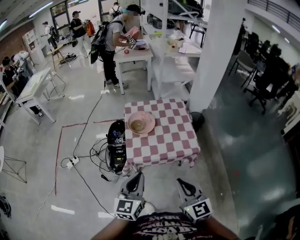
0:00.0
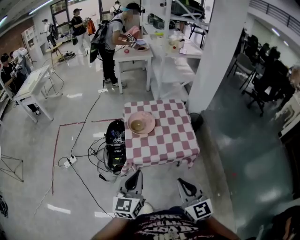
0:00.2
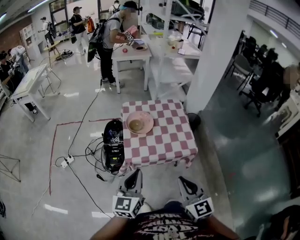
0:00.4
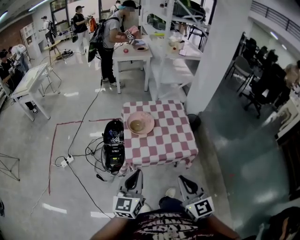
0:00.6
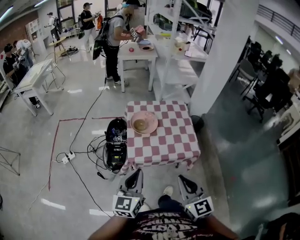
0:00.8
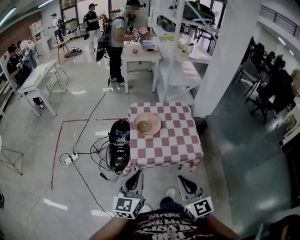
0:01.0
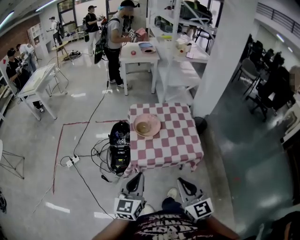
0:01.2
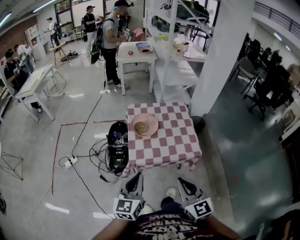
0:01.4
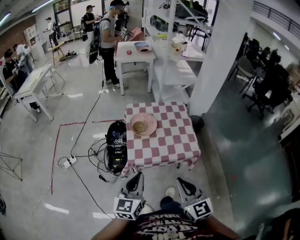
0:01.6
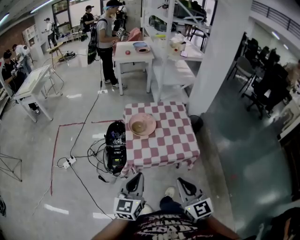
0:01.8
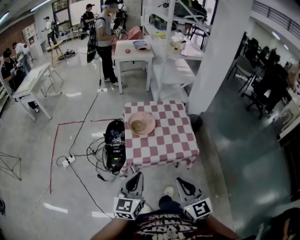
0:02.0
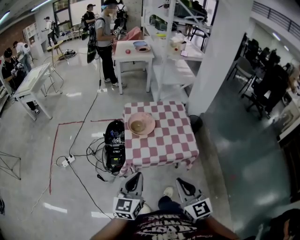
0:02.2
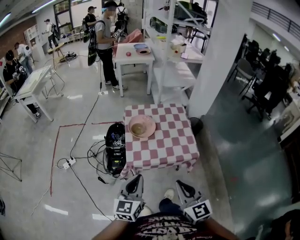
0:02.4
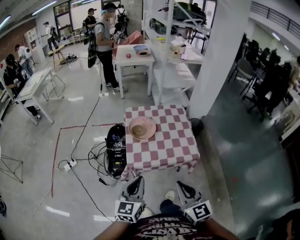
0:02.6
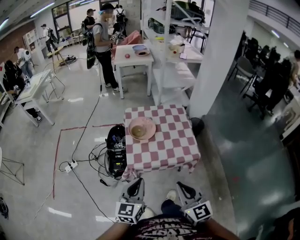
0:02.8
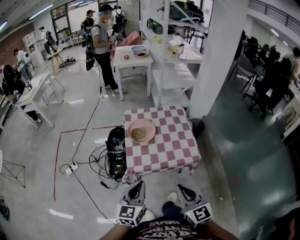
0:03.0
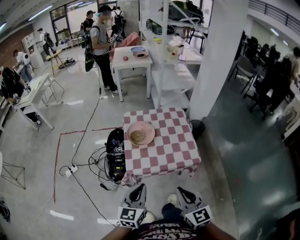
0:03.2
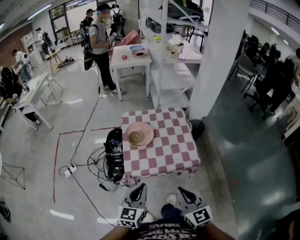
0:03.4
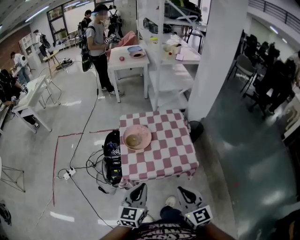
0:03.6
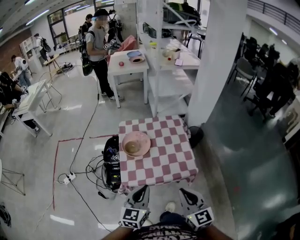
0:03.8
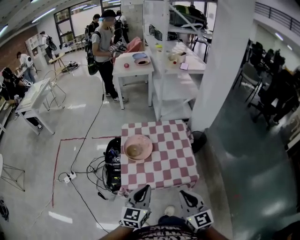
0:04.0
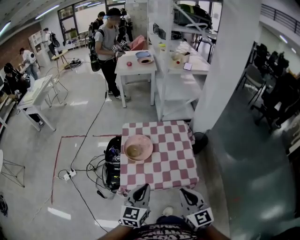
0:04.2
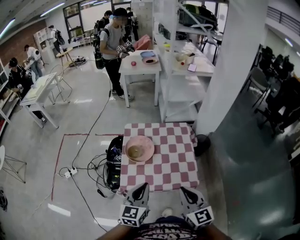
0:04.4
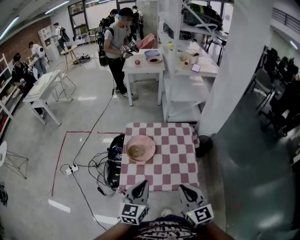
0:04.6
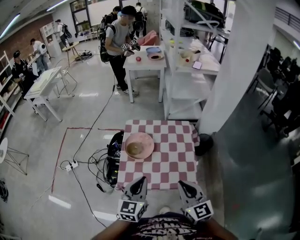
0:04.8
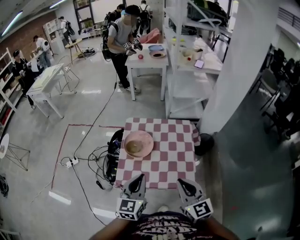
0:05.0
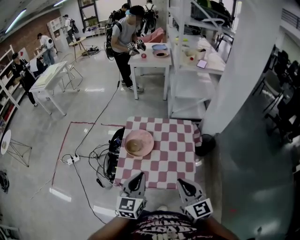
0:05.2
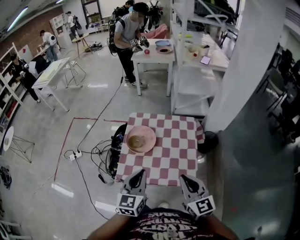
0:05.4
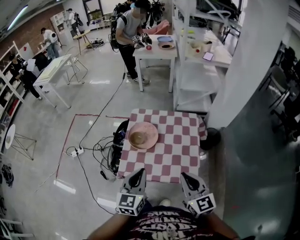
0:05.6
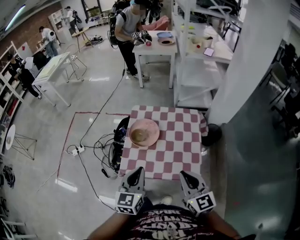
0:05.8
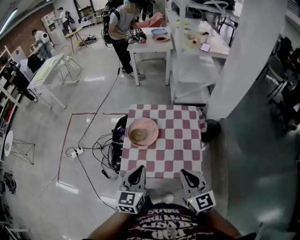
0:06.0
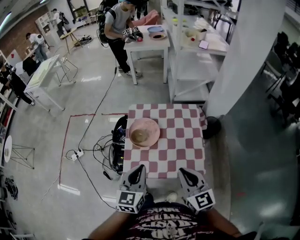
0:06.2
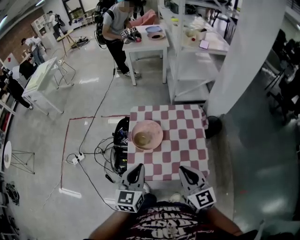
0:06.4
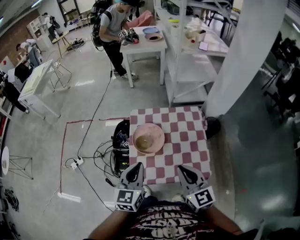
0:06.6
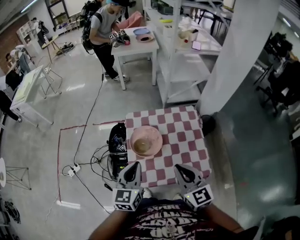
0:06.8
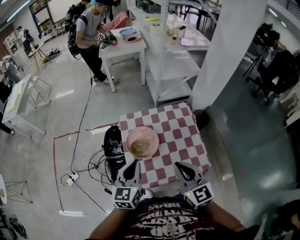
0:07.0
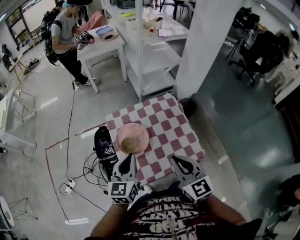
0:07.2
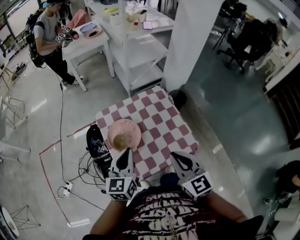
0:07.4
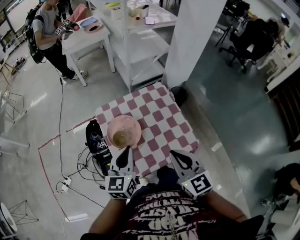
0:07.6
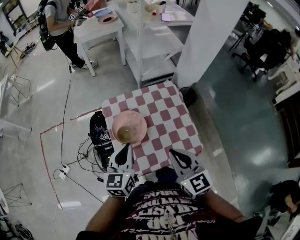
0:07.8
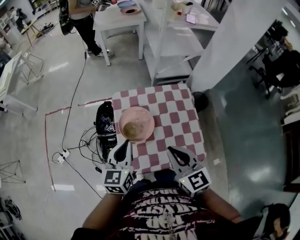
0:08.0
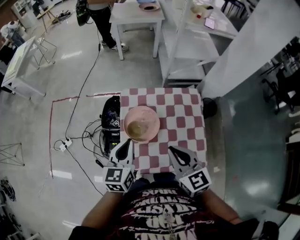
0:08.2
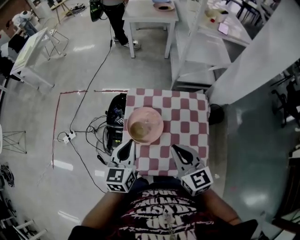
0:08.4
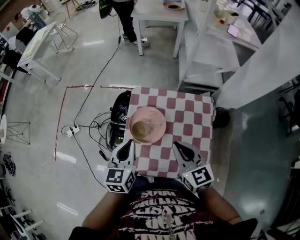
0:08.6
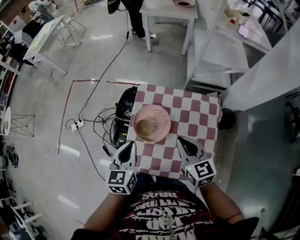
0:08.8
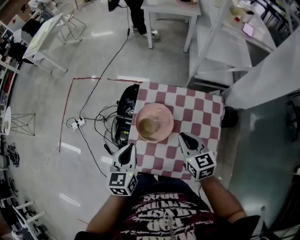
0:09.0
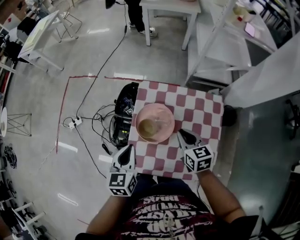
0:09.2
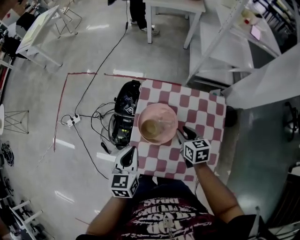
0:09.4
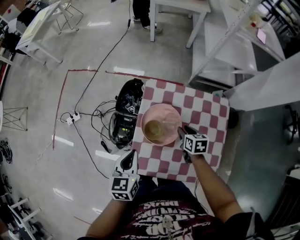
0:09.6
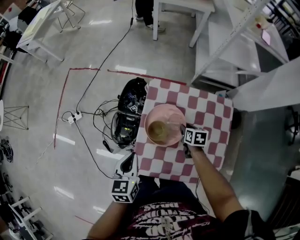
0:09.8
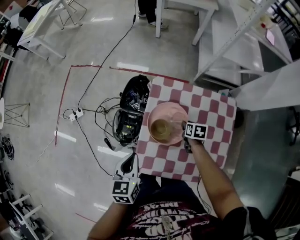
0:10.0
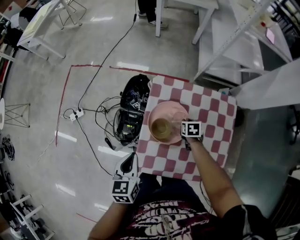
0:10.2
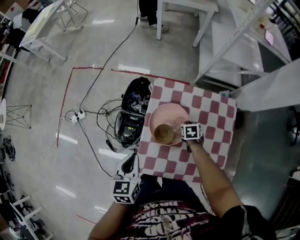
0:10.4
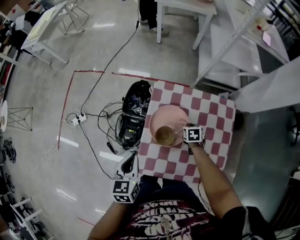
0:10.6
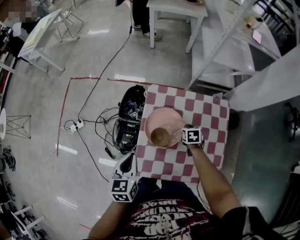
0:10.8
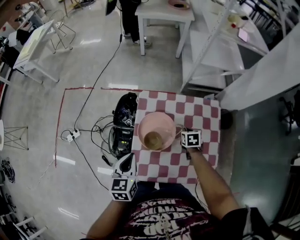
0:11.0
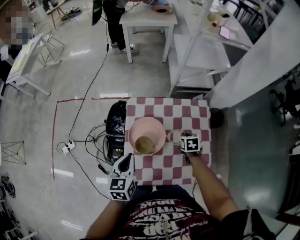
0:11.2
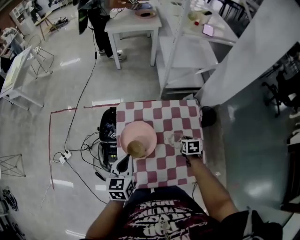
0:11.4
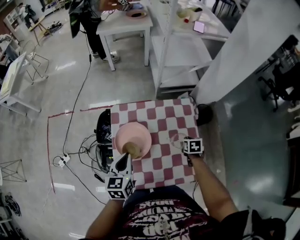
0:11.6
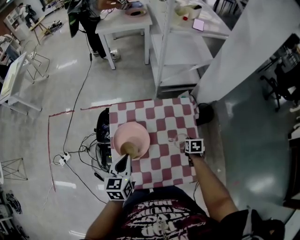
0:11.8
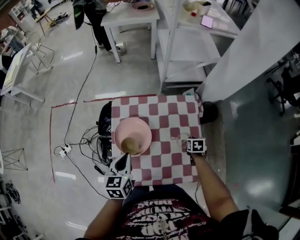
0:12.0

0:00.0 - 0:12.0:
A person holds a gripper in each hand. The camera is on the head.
0:00.0 - 0:03.0: The grippers move only a little.
0:03.0 - 0:04.4: The two grippers go about 20 cm forward and to the right.
0:04.4 - 0:06.0: The right gripper heads forward, covering roughly 5 cm.
0:06.0 - 0:07.6: The left gripper heads forward and to the left, covering about 15 cm, and rotates approximately 20 degrees; the right gripper heads to the left and forward, covering some 10 cm, and changes its angle by some 20 degrees.
0:07.6 - 0:09.0: The right gripper moves some 25 cm, and swivels about 30 degrees. The left gripper heads downward, covering roughly 5 cm, and swivels about 40 degrees.
0:09.0 - 0:10.4: The left gripper heads to the left and downward, covering about 10 cm. Meanwhile the right gripper goes about 30 cm downward, tips its fingers downward by some 40 degrees, and opens and closes again.
0:10.4 - 0:12.0: The left gripper shifts by some 15 cm, while the right gripper ends up approximately 30 cm from where it was, and turns by approximately 20 degrees.

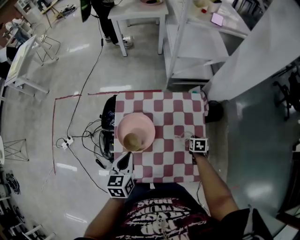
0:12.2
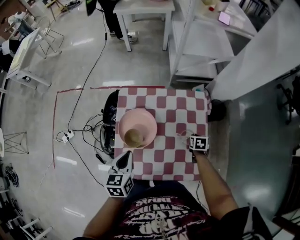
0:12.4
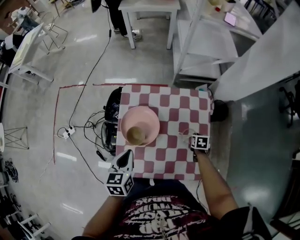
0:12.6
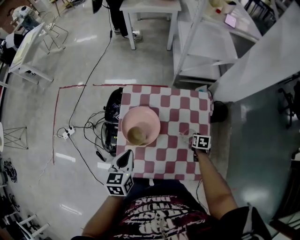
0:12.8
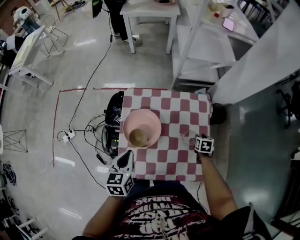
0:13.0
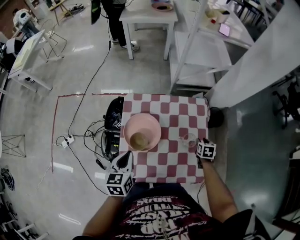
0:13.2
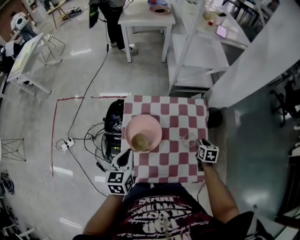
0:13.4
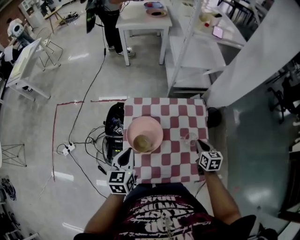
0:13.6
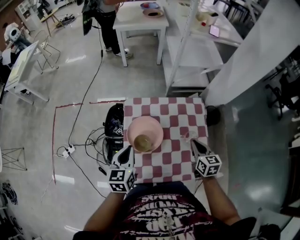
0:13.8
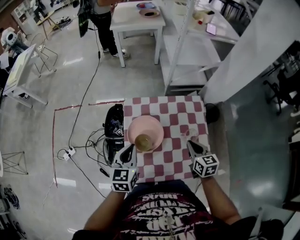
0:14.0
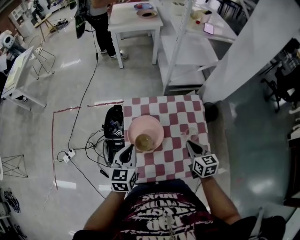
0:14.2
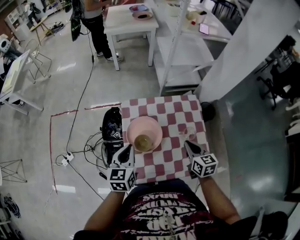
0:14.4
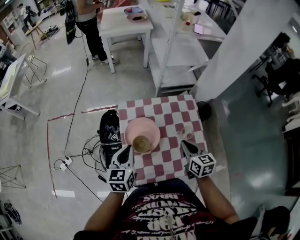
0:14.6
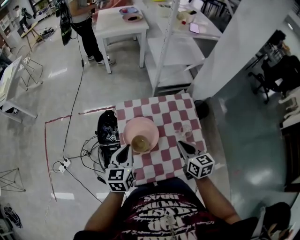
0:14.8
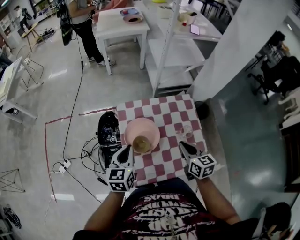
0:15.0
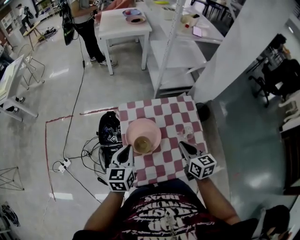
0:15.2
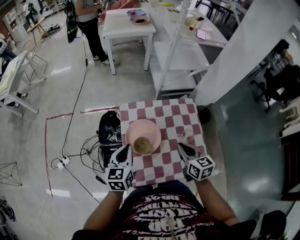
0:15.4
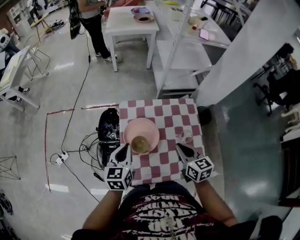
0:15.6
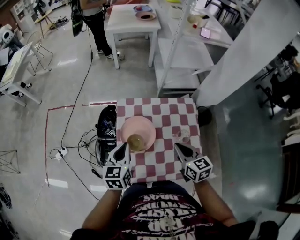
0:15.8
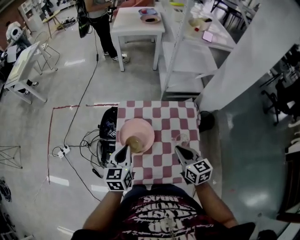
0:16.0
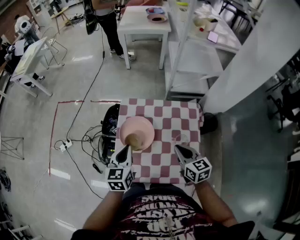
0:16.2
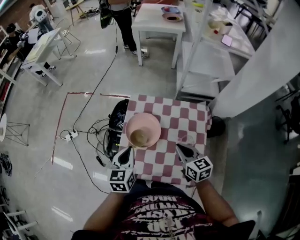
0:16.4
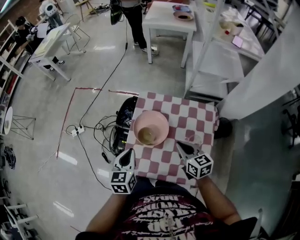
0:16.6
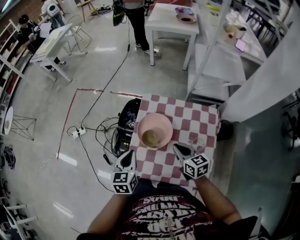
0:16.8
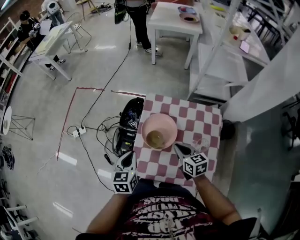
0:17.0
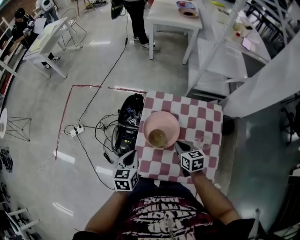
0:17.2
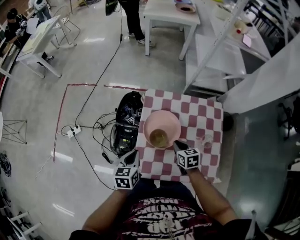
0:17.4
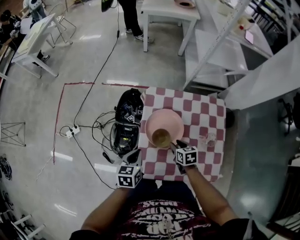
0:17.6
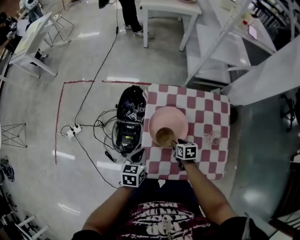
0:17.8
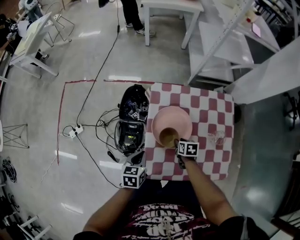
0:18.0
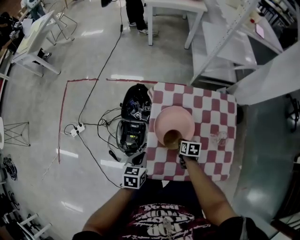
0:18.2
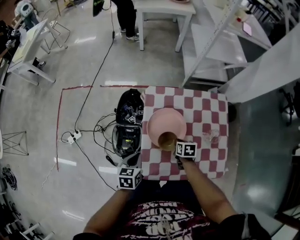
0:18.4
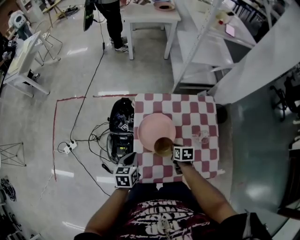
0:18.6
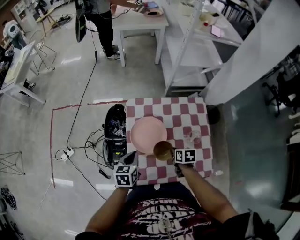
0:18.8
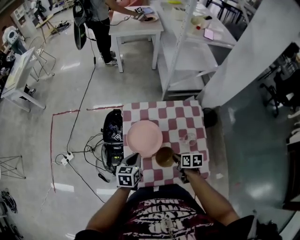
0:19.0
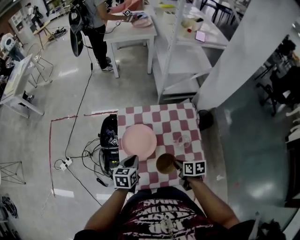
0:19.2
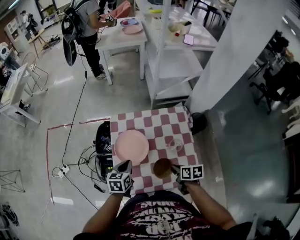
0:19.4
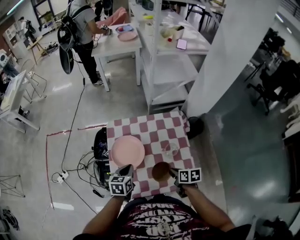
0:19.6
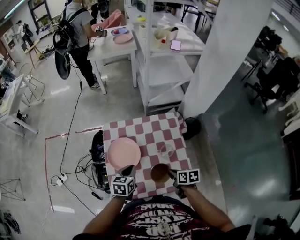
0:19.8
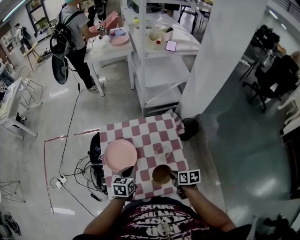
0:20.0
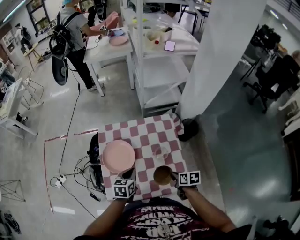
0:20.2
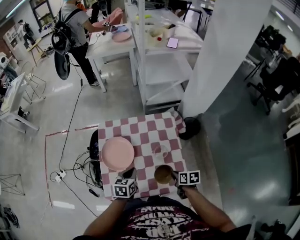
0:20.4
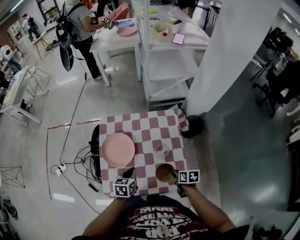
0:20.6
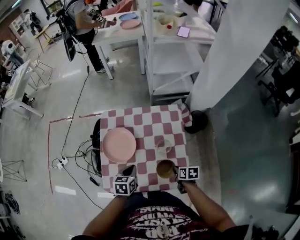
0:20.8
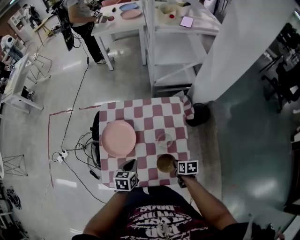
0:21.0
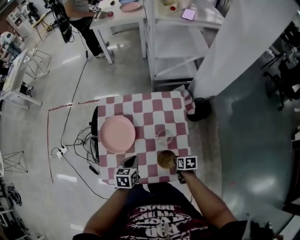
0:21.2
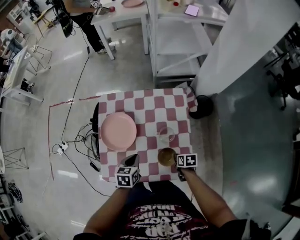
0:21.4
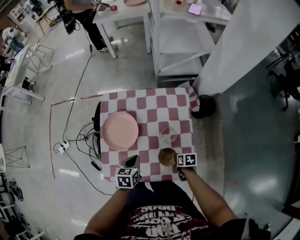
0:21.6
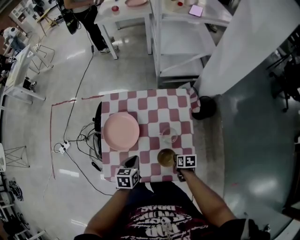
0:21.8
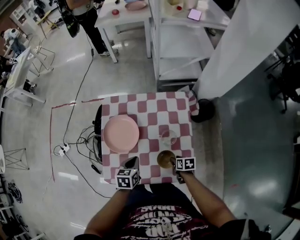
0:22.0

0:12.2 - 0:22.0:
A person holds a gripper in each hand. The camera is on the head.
0:12.2 - 0:13.6: The right gripper heads upward, covering roughly 15 cm, rotates some 30 degrees, and opens, then closes again; the left gripper changes place by approximately 10 cm.
0:13.6 - 0:15.0: The right gripper shifts approximately 20 cm to the left and upward.
0:15.0 - 0:16.4: The left gripper heads to the right and backward, covering roughly 10 cm, and rotates approximately 20 degrees. The right gripper changes its angle by about 20 degrees.
0:16.4 - 0:17.8: Both grippers travel together downward and to the left, roughly 25 cm. The right gripper tilts its fingers some 30 degrees downward, and opens up. Meanwhile the left gripper changes its angle by roughly 20 degrees.
0:17.8 - 0:19.2: The right gripper shifts some 20 cm to the right, upward and backward, and closes its fingers. The left gripper heads to the right and upward, covering some 15 cm.
0:19.2 - 0:20.6: The left gripper shifts some 15 cm to the right, while the right gripper is displaced to the right and downward by about 15 cm.
0:20.6 - 0:22.0: The right gripper goes approximately 10 cm downward, and opens its fingers.

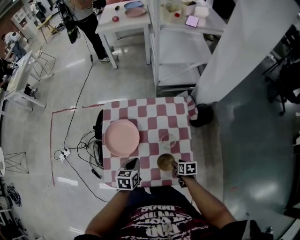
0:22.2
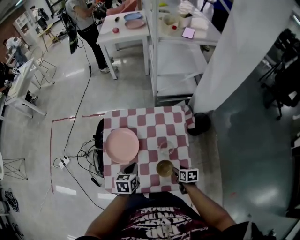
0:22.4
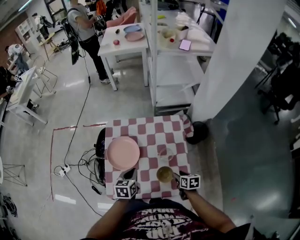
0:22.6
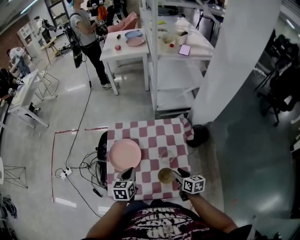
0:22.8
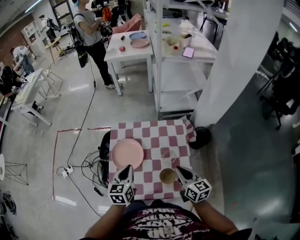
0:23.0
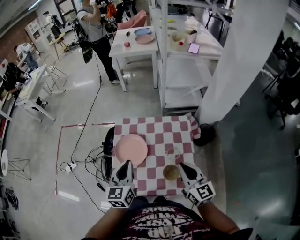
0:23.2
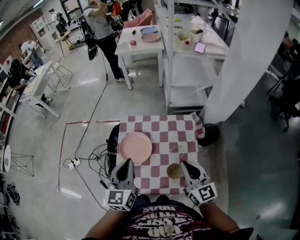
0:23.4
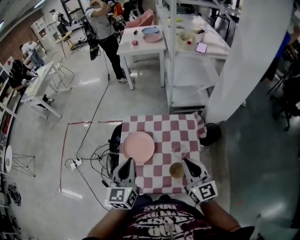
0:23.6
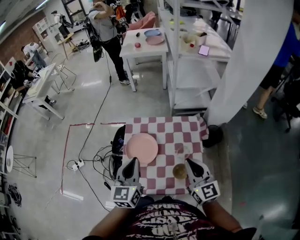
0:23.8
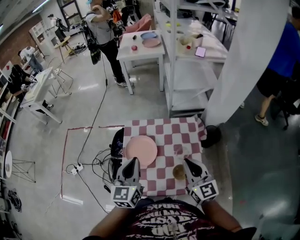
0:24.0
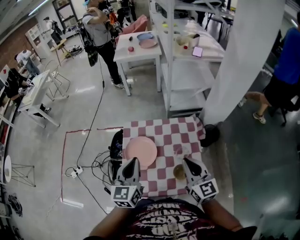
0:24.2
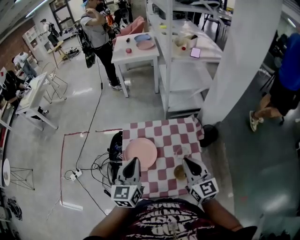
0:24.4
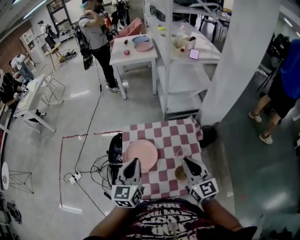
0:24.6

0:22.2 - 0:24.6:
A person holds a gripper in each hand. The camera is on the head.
0:22.2 - 0:23.4: The two grippers go some 35 cm upward. The left gripper tips its fingers upward by approximately 40 degrees. The right gripper points its fingers about 50 degrees further upward, and closes.
0:23.4 - 0:24.6: The right gripper shifts about 5 cm to the left.
